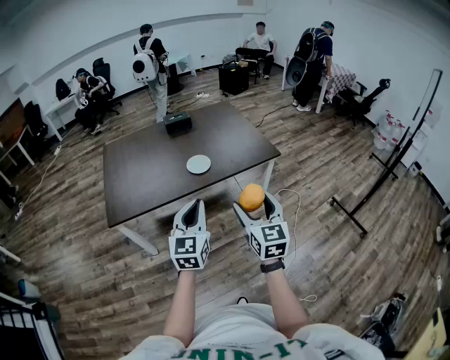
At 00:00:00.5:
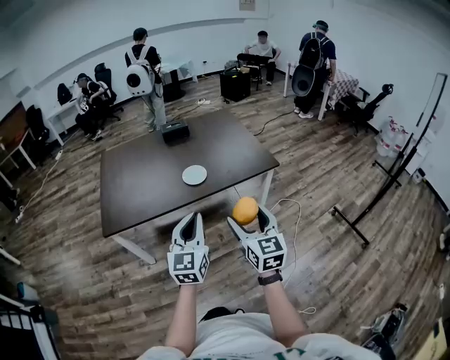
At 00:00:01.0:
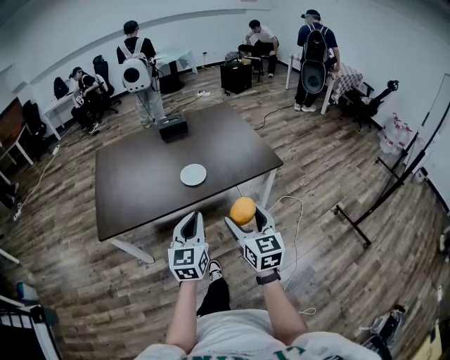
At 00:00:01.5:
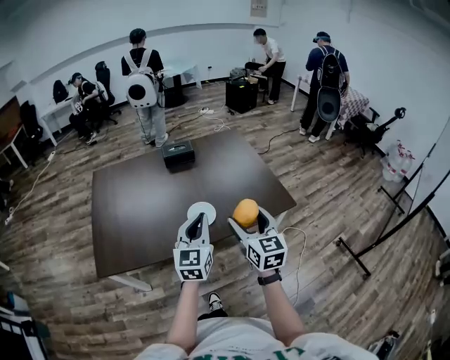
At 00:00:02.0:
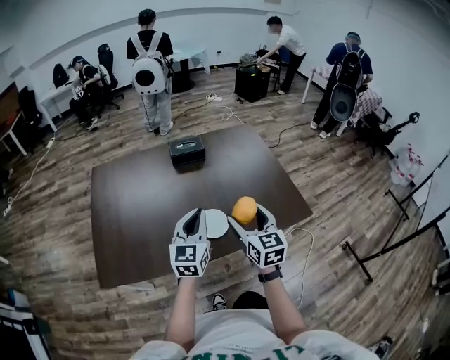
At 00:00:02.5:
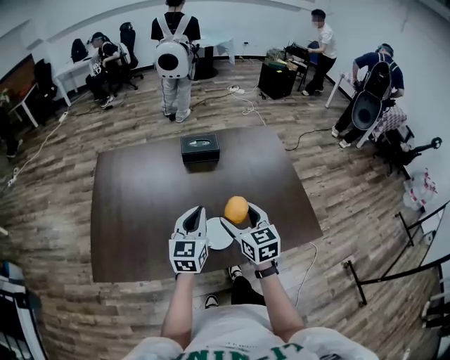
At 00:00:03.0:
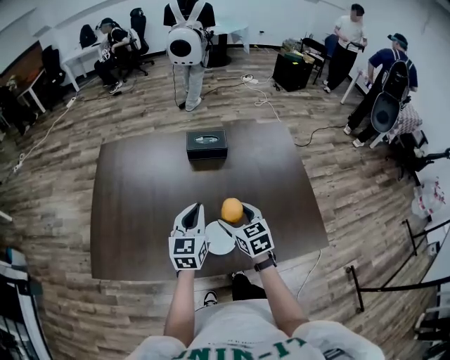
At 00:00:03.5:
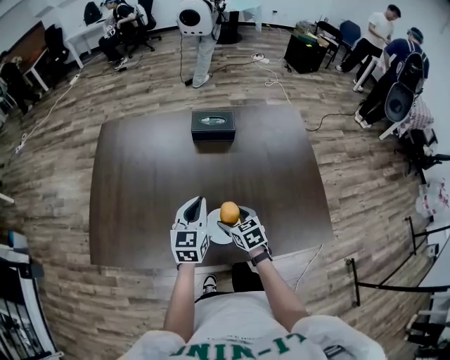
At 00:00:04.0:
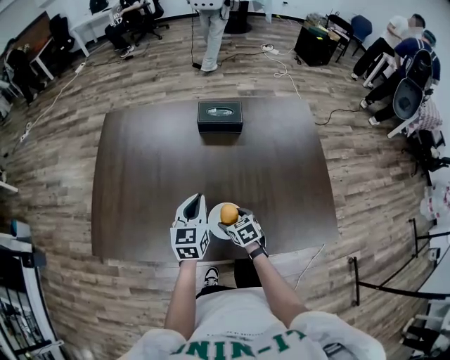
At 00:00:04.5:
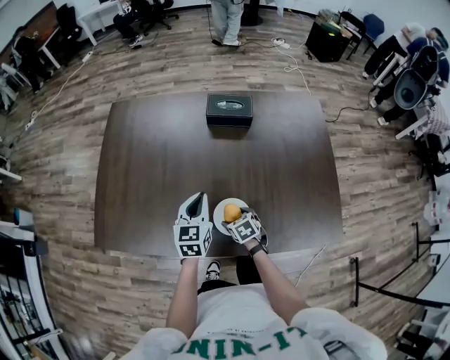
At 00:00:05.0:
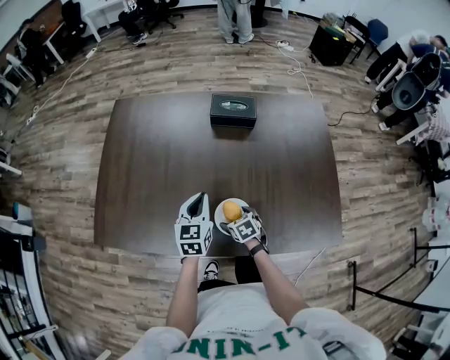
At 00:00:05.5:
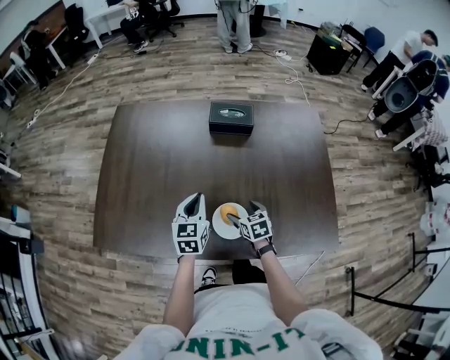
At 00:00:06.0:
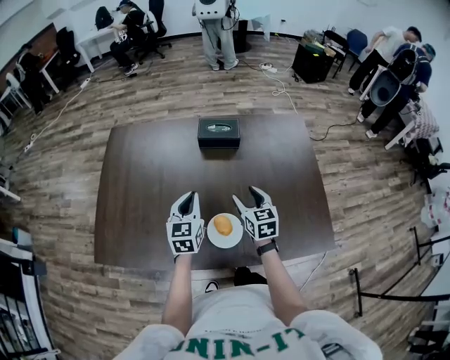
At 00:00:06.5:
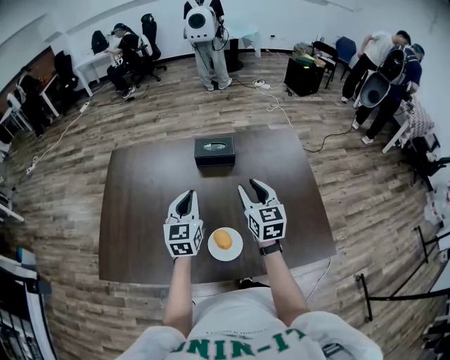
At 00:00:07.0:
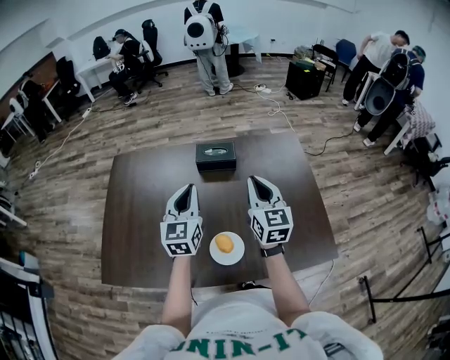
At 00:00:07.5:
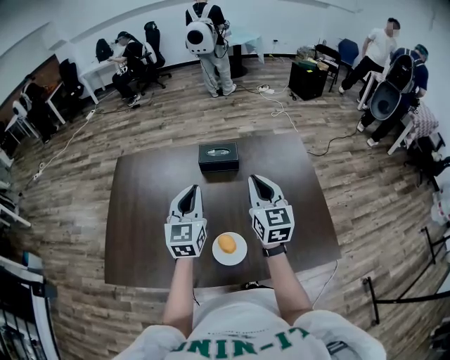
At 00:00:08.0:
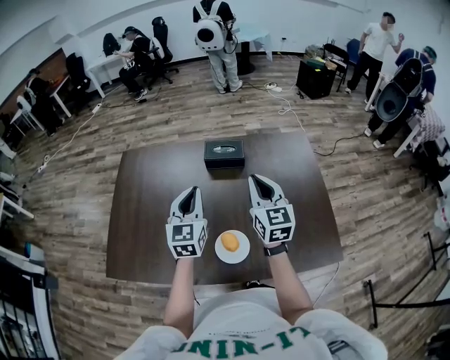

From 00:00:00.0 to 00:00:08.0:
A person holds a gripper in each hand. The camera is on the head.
From 00:00:00.0 to 00:00:02.0: The pair of grippers is taken forward, about 50 cm.
From 00:00:02.0 to 00:00:04.0: The right gripper is displaced downward by about 35 cm, and angles its fingers downward, by approximately 40 degrees; the left gripper shifts by roughly 25 cm, and turns by roughly 20 degrees.
From 00:00:04.0 to 00:00:06.0: The right gripper heads upward, to the right and forward, covering about 20 cm, and turns by roughly 30 degrees.
From 00:00:06.0 to 00:00:08.0: The two grippers go roughly 15 cm upward. The right gripper turns by approximately 20 degrees, and closes.

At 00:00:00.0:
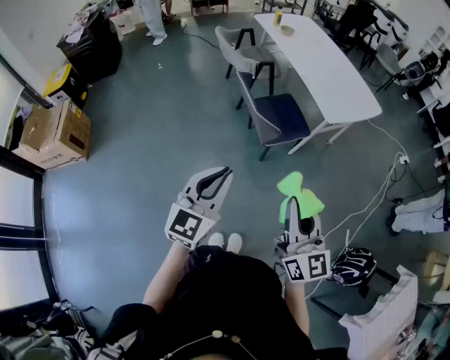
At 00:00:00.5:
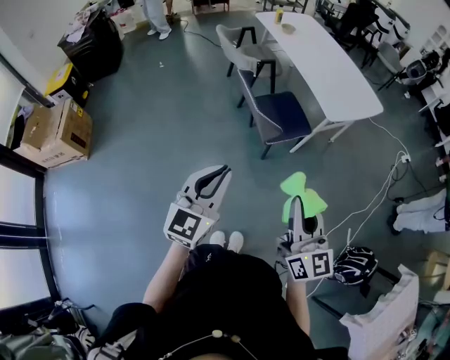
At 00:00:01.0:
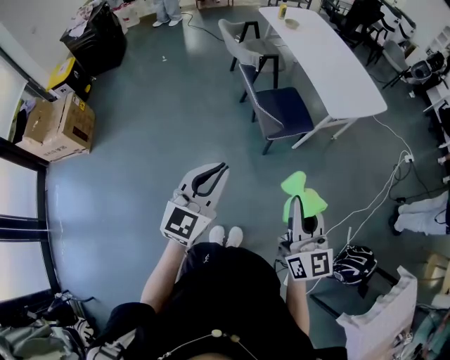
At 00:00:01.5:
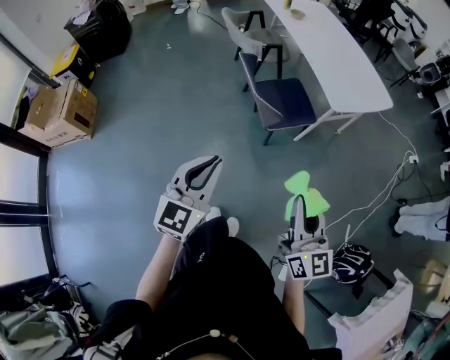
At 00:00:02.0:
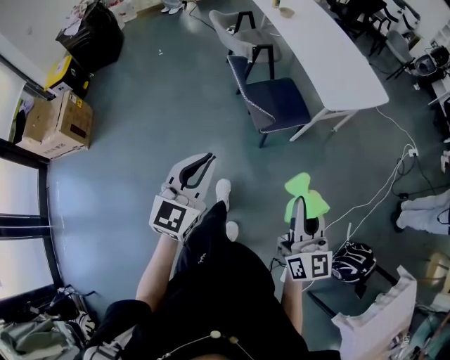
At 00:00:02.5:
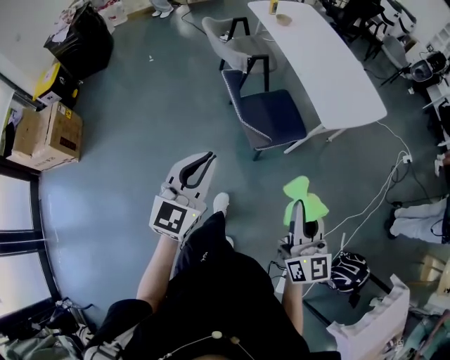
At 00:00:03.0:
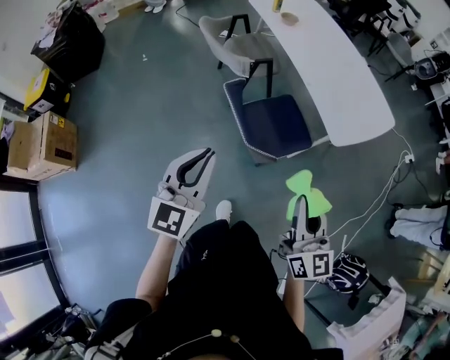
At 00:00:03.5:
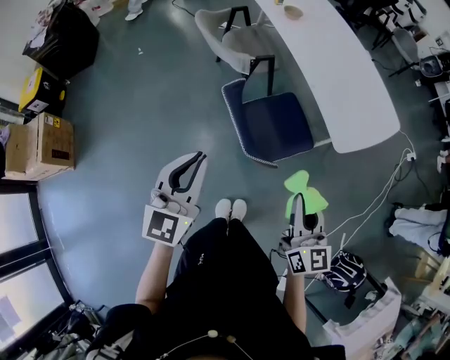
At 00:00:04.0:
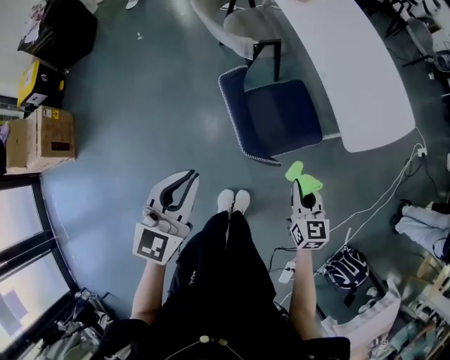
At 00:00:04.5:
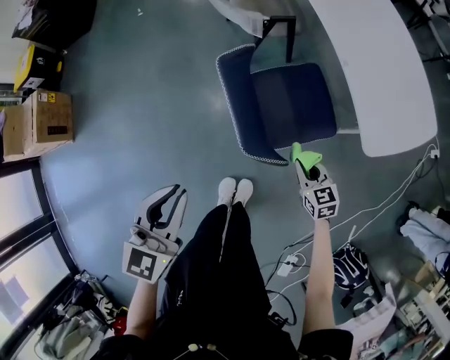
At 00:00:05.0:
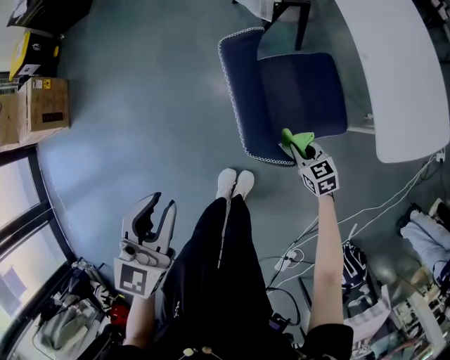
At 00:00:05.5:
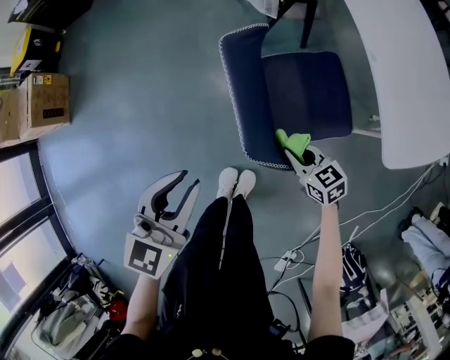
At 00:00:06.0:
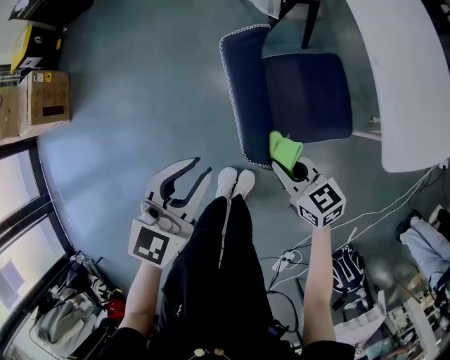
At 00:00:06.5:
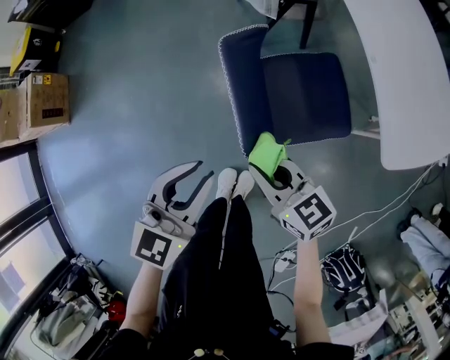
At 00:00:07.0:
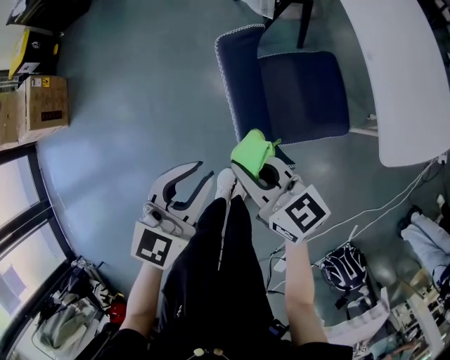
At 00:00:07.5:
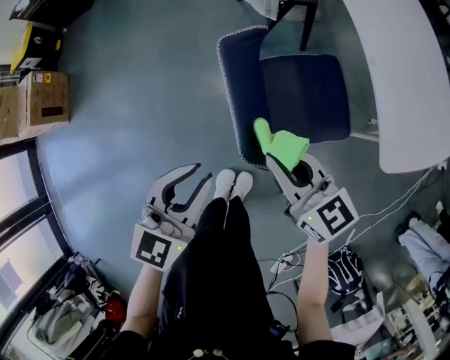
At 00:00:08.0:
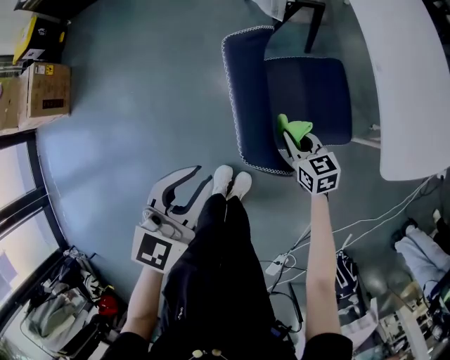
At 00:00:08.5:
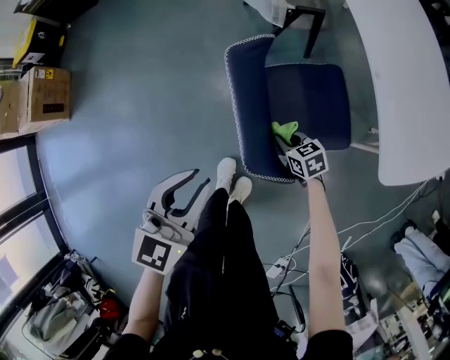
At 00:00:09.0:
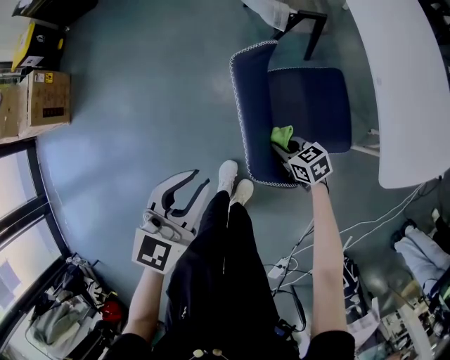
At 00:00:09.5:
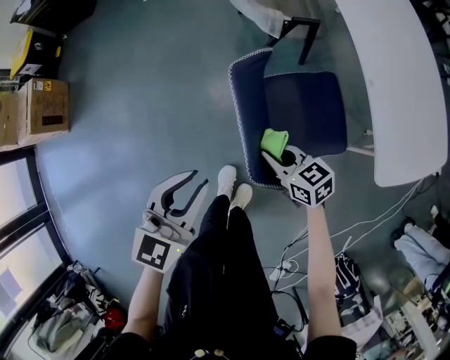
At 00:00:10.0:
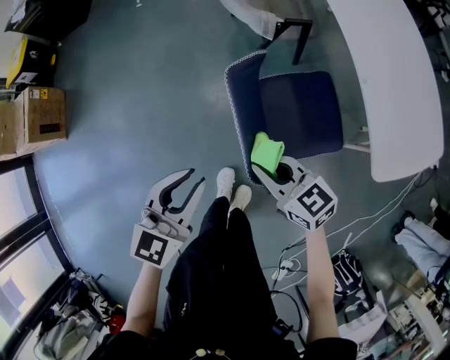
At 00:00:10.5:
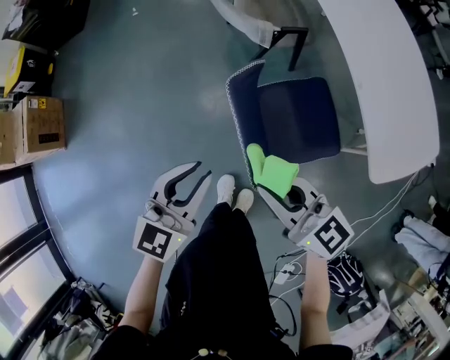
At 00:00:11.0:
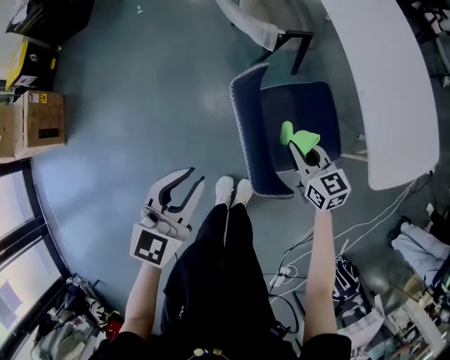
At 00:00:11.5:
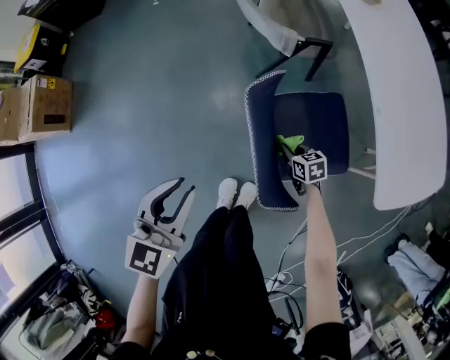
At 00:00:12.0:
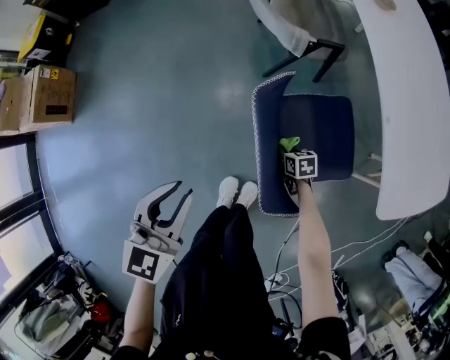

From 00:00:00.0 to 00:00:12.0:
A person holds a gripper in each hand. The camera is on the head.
From 00:00:00.0 to 00:00:02.0: The right gripper shifts approximately 10 cm to the right.
From 00:00:02.0 to 00:00:04.0: The right gripper heads forward and downward, covering some 40 cm, and changes its angle by roughly 30 degrees; the left gripper goes roughly 25 cm forward.
From 00:00:04.0 to 00:00:06.0: The right gripper rotates roughly 40 degrees, while the left gripper shifts roughly 15 cm downward.
From 00:00:06.0 to 00:00:08.0: The right gripper goes roughly 10 cm downward, forward and to the right.
From 00:00:08.0 to 00:00:10.0: The right gripper moves upward and to the left, roughly 20 cm. Meanwhile the left gripper heads forward, covering about 5 cm.
From 00:00:10.0 to 00:00:12.0: The left gripper ends up some 5 cm from where it was. The right gripper heads downward, covering about 30 cm, and points its fingers approximately 30 degrees further downward.

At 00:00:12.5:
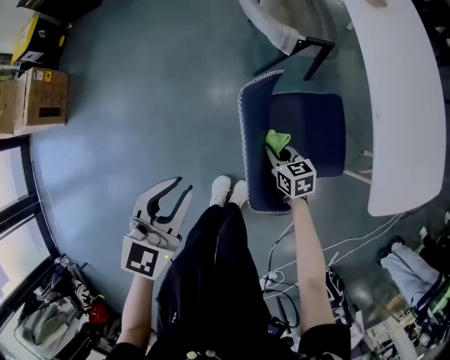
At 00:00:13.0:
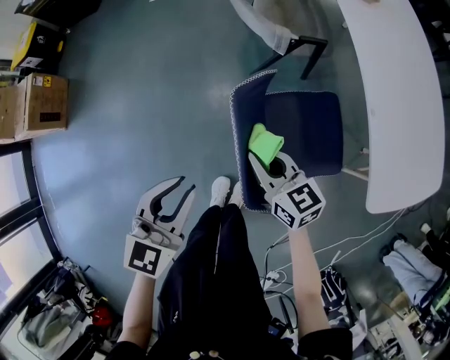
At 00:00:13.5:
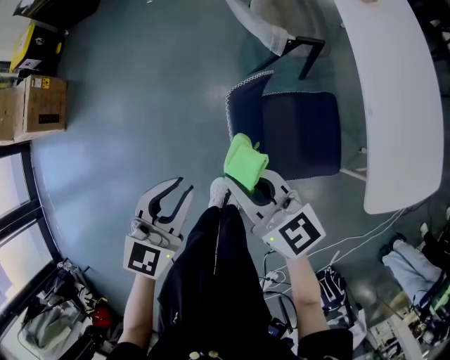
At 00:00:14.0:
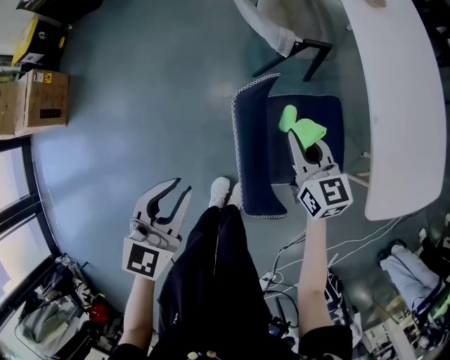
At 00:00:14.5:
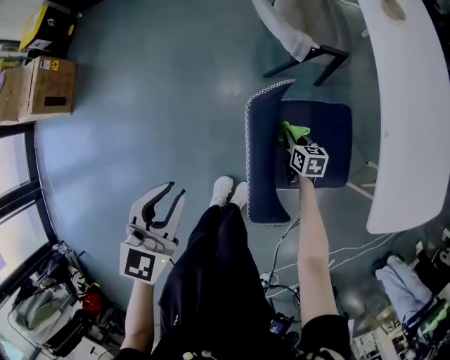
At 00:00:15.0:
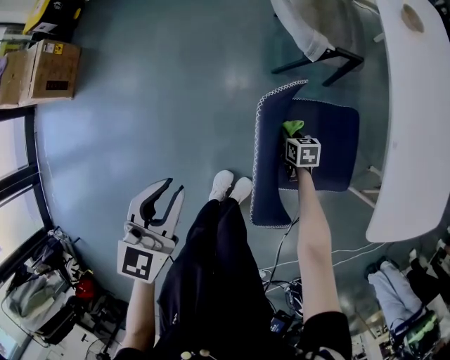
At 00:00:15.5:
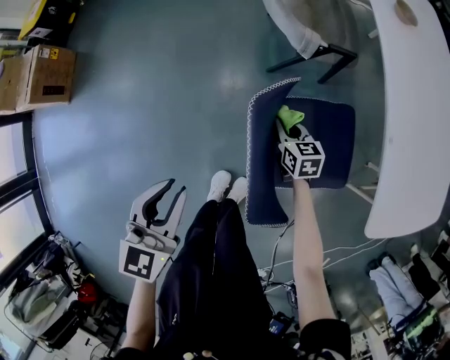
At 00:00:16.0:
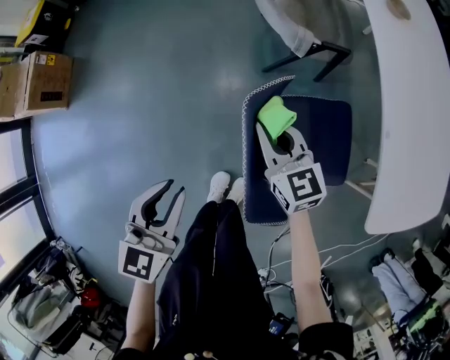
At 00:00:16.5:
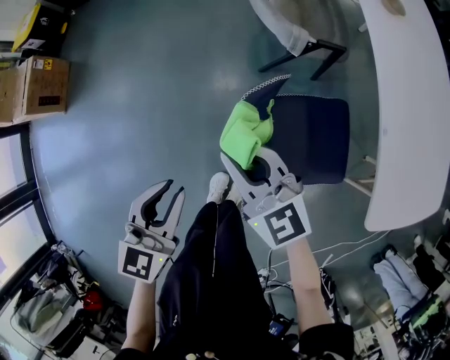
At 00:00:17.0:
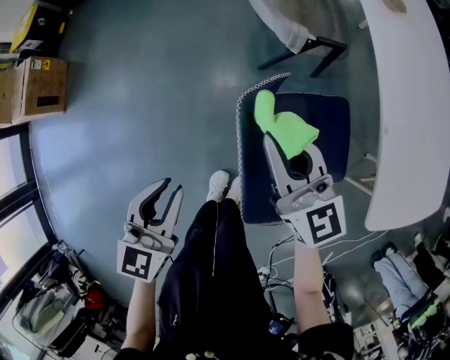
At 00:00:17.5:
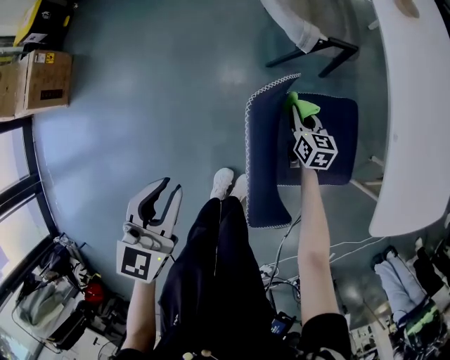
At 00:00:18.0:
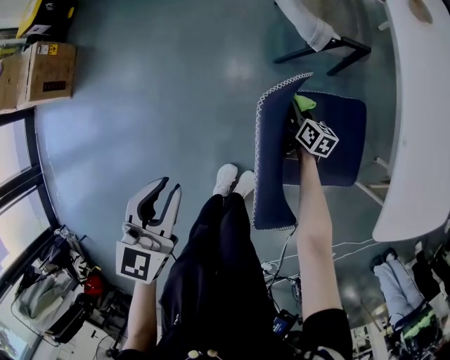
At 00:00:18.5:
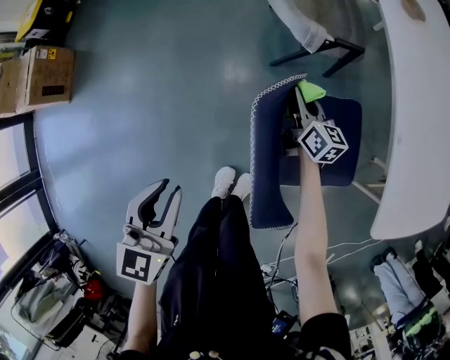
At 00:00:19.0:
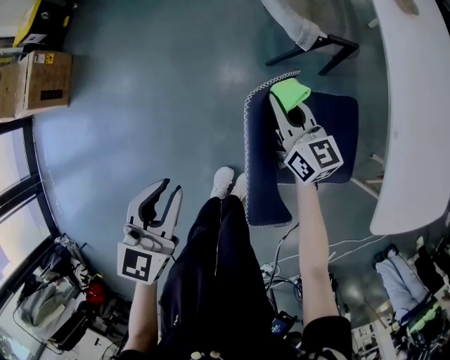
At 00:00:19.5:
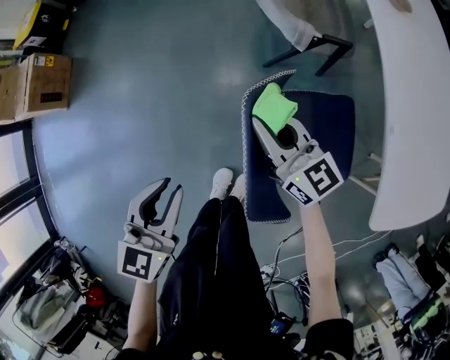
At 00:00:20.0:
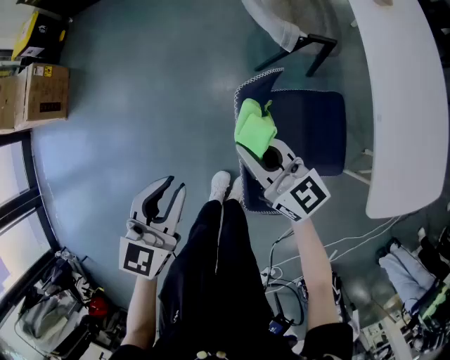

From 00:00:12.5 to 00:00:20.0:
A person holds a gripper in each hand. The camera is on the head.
From 00:00:12.5 to 00:00:14.5: The right gripper is displaced forward and to the right by approximately 10 cm, and travels upward and back again, about 25 cm each way.
From 00:00:14.5 to 00:00:16.5: The right gripper moves upward and to the left, some 35 cm, and angles its fingers upward, by about 30 degrees.
From 00:00:16.5 to 00:00:18.0: The right gripper is displaced downward and to the right by approximately 35 cm, and twists roughly 50 degrees clockwise, seen from behind.
From 00:00:18.0 to 00:00:20.0: The right gripper moves upward and to the left, approximately 35 cm, and swivels approximately 50 degrees.
